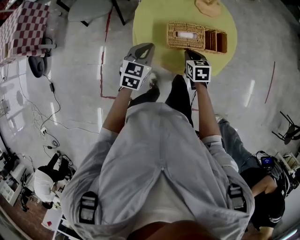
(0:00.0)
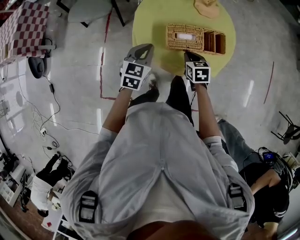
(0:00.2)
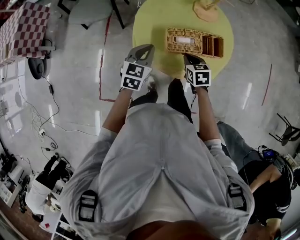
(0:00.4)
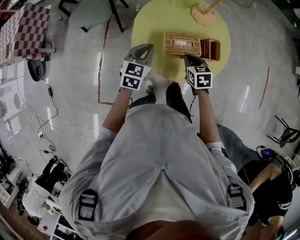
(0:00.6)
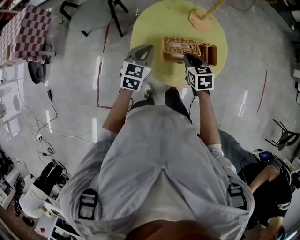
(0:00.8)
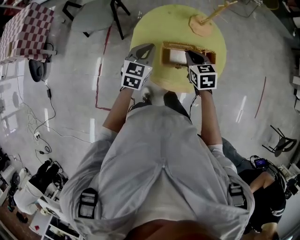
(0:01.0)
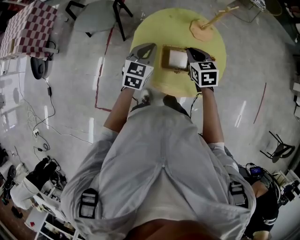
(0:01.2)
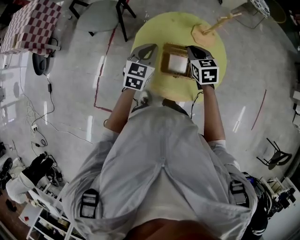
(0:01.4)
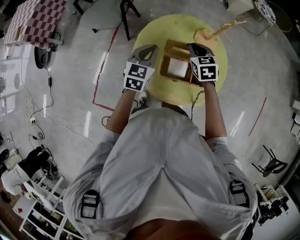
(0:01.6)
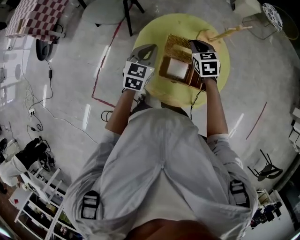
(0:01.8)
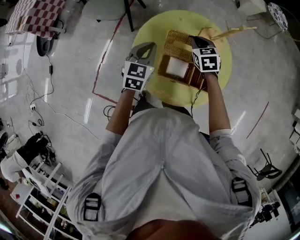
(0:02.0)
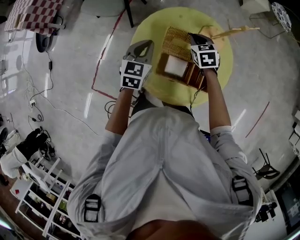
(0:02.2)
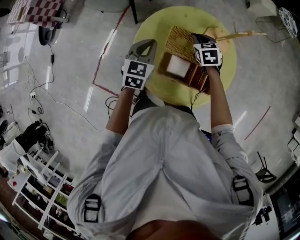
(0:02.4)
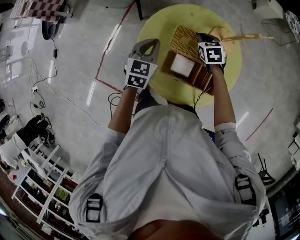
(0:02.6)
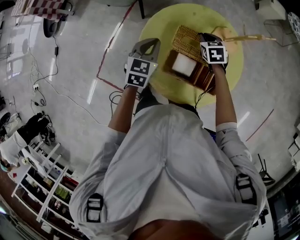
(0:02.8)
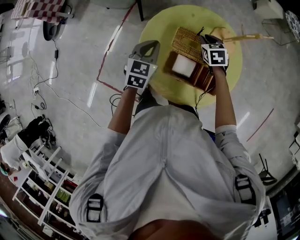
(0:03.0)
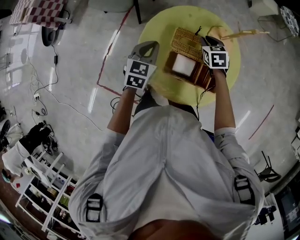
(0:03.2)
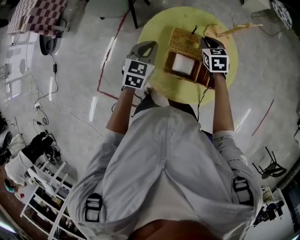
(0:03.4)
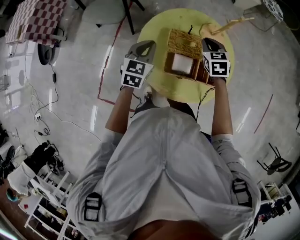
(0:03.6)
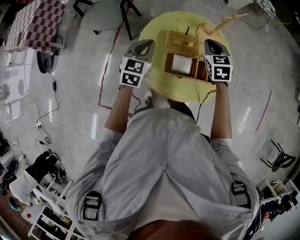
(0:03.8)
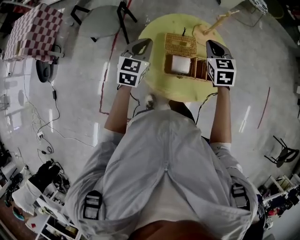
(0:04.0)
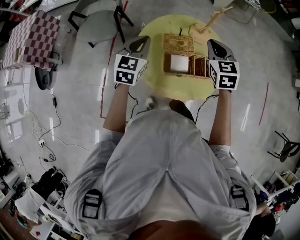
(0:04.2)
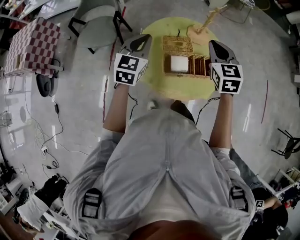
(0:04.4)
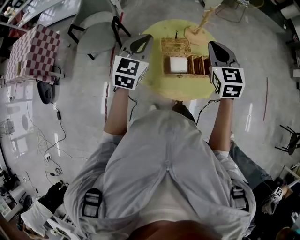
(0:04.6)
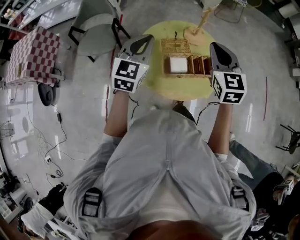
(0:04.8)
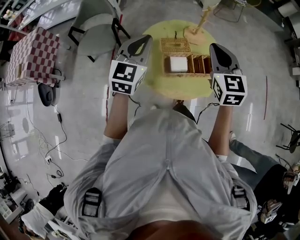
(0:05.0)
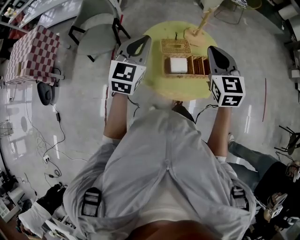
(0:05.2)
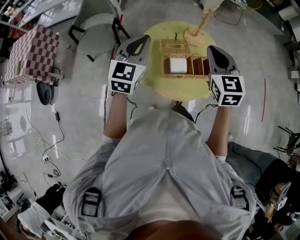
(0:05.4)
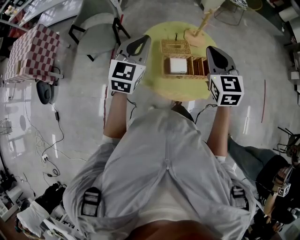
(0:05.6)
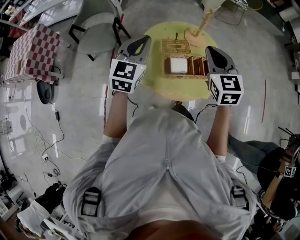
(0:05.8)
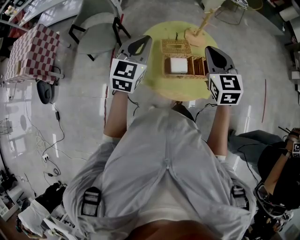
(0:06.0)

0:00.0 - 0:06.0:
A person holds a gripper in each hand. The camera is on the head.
0:00.0 - 0:01.6: The right gripper goes some 25 cm forward and upward, and turns by about 20 degrees, while the left gripper is displaced forward and upward by about 15 cm.
0:01.6 - 0:03.0: The left gripper is displaced downward by about 5 cm, while the right gripper shifts roughly 15 cm downward and forward.
0:03.0 - 0:04.4: The right gripper moves upward and backward, about 30 cm, and rotates roughly 40 degrees. Meanwhile the left gripper is displaced upward by some 15 cm, and changes its angle by roughly 30 degrees.
0:04.4 - 0:06.0: The right gripper travels backward by roughly 5 cm, while the left gripper heads upward, covering about 5 cm.

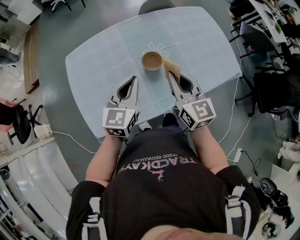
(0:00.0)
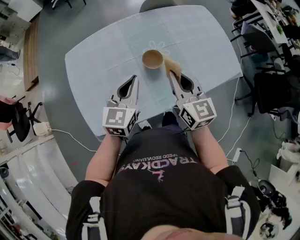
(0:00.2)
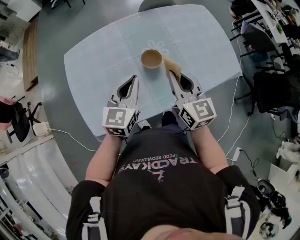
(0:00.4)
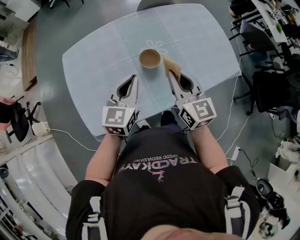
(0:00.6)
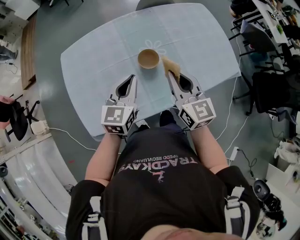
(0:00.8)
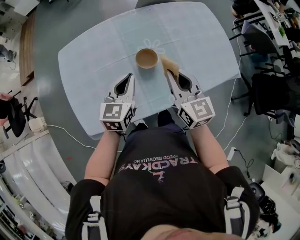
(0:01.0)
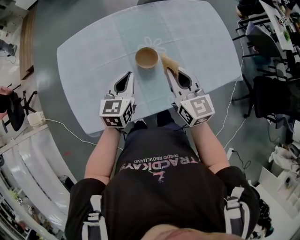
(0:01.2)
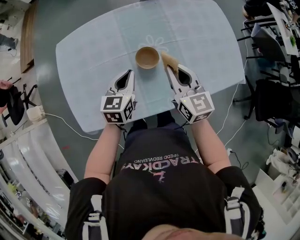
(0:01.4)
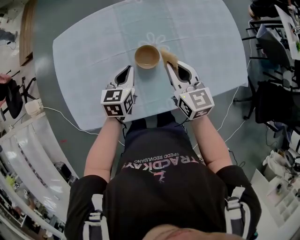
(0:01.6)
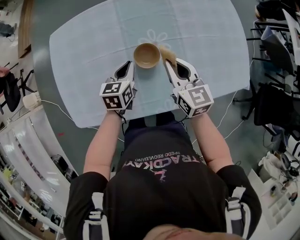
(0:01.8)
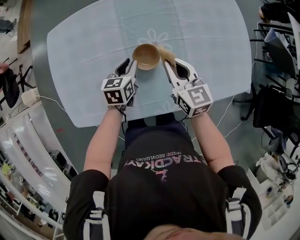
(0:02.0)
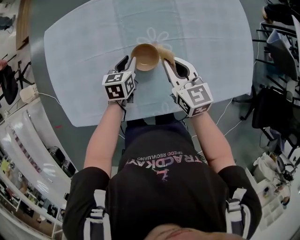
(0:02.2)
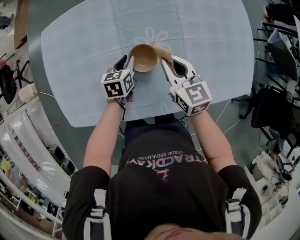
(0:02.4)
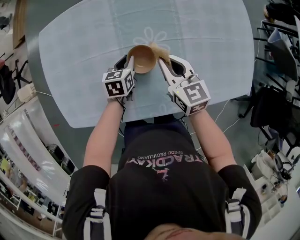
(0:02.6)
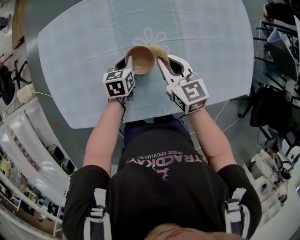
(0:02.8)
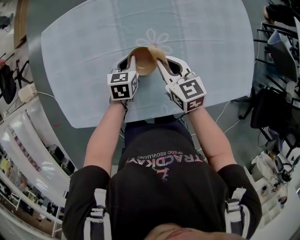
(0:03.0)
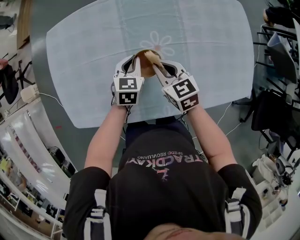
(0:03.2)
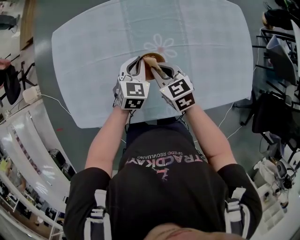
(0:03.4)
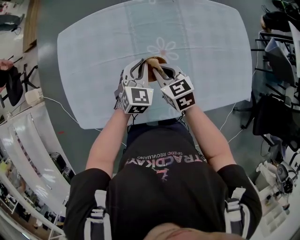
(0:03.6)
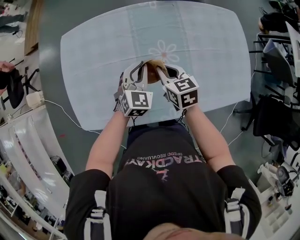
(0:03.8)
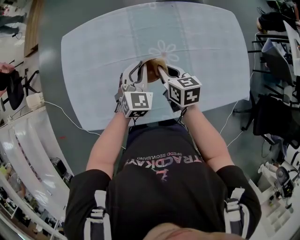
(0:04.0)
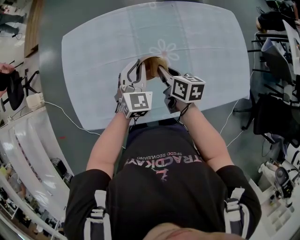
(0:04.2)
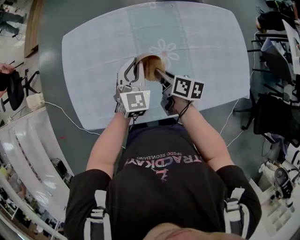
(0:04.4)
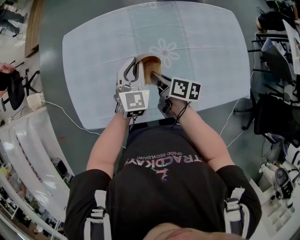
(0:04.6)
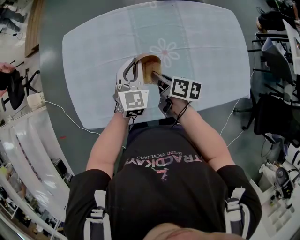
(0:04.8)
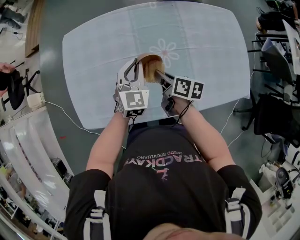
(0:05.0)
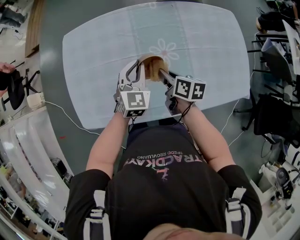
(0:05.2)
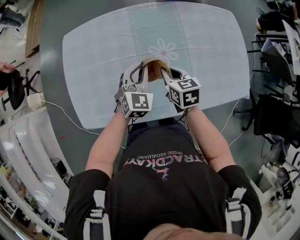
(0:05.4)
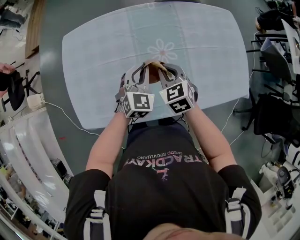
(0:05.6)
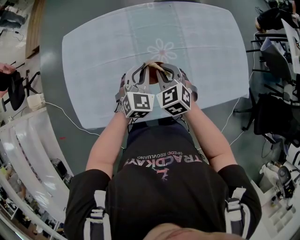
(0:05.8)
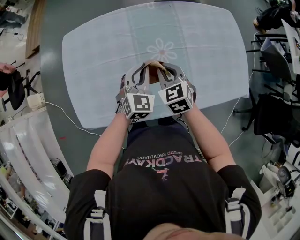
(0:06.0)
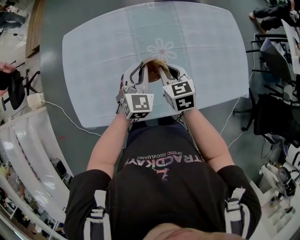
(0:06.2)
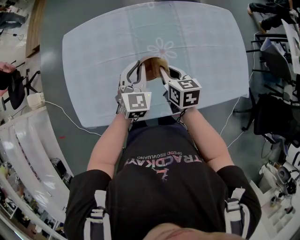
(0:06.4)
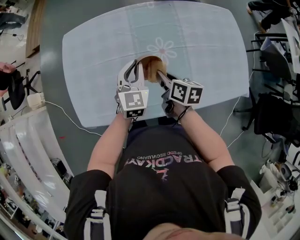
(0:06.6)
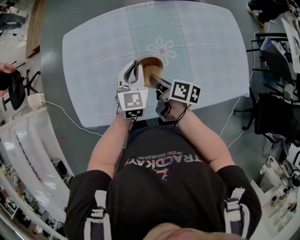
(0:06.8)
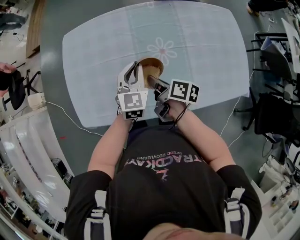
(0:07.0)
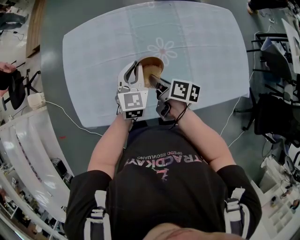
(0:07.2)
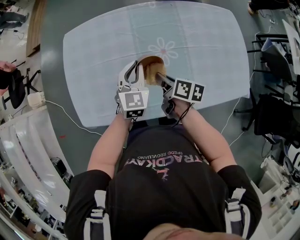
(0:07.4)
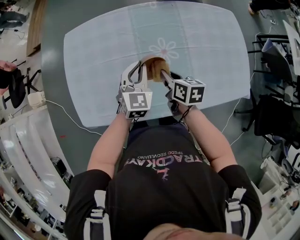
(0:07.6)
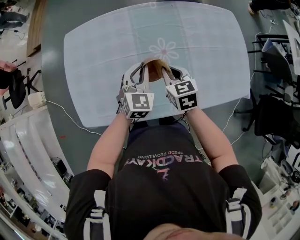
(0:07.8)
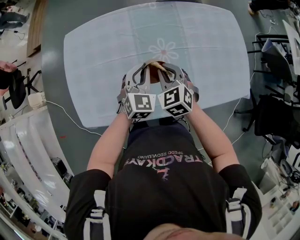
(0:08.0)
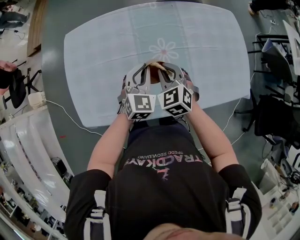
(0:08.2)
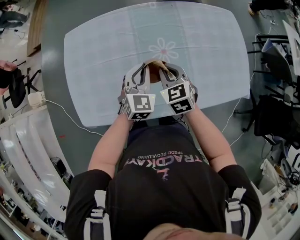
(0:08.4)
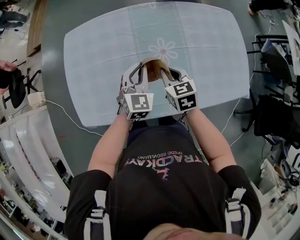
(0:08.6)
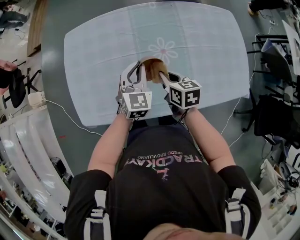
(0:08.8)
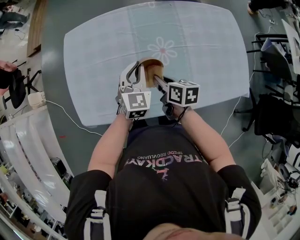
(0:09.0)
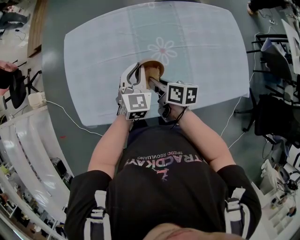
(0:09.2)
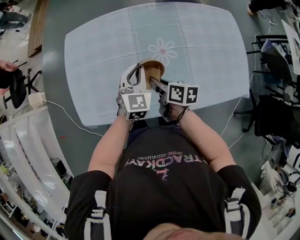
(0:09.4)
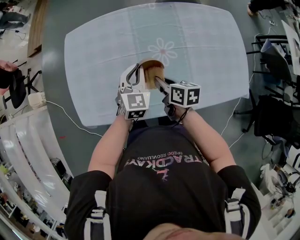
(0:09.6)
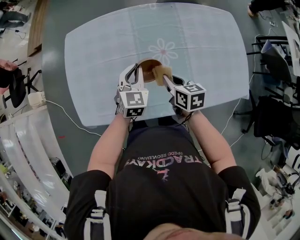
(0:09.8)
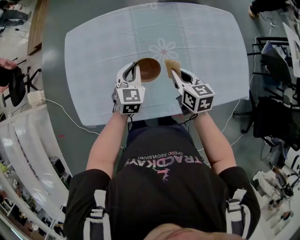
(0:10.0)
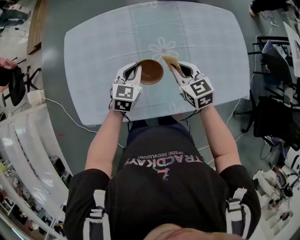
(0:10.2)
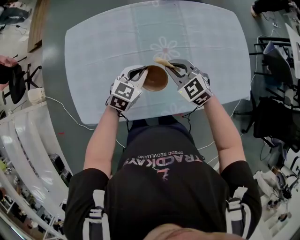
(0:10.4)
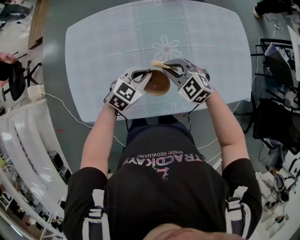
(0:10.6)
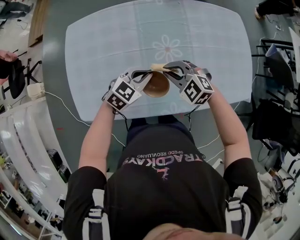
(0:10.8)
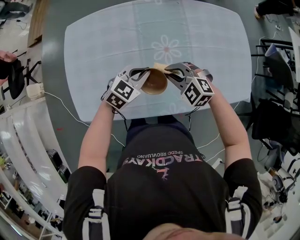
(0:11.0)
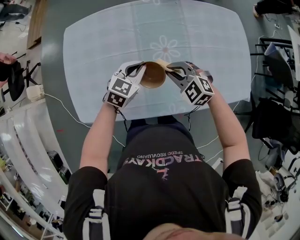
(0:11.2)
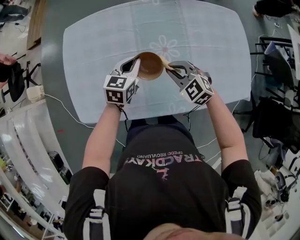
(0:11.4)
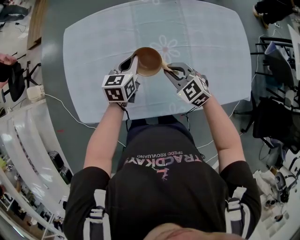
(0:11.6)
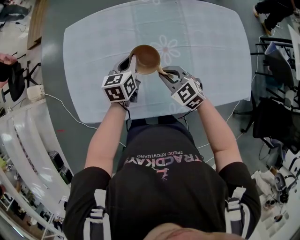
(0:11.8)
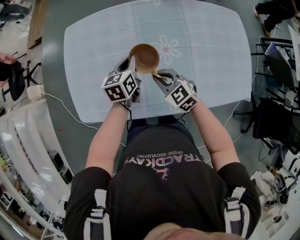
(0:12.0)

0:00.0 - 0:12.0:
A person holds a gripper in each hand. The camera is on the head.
0:00.0 - 0:01.6: The left gripper shifts about 15 cm downward and forward, and changes its angle by some 30 degrees. The right gripper goes about 15 cm forward, downward and to the right.
0:01.6 - 0:03.0: Both grippers travel together downward and forward, about 15 cm. The left gripper opens, then closes once more.
0:03.0 - 0:04.4: The right gripper heads to the left, covering approximately 5 cm, and twists some 40 degrees clockwise, seen from behind; the left gripper heads upward, covering about 15 cm, and changes its angle by some 40 degrees.
0:04.4 - 0:06.0: The right gripper rolls counterclockwise, seen from behind, by about 60 degrees.
0:06.0 - 0:07.6: The right gripper twists about 50 degrees clockwise, seen from behind.
0:09.0 - 0:10.4: The left gripper changes place by about 5 cm, and rotates roughly 30 degrees, while the right gripper shifts by approximately 5 cm, and rotates around the line of its fingers by some 70 degrees, counterclockwise from behind.
0:10.4 - 0:12.0: The right gripper heads to the left, covering about 5 cm; the left gripper is displaced forward and to the left by approximately 10 cm, and turns by roughly 40 degrees.

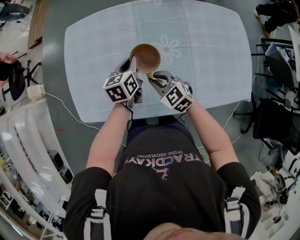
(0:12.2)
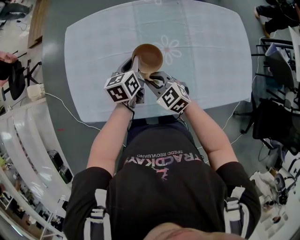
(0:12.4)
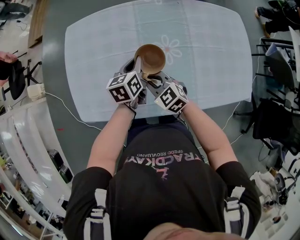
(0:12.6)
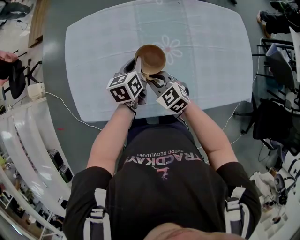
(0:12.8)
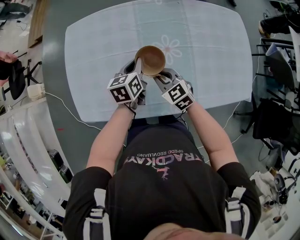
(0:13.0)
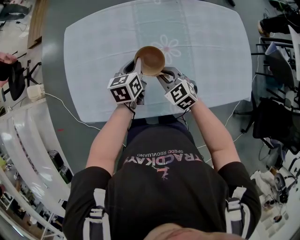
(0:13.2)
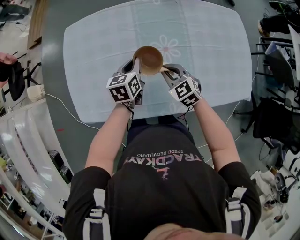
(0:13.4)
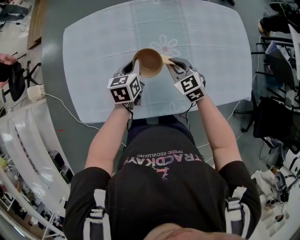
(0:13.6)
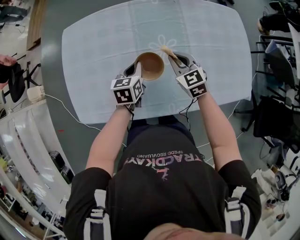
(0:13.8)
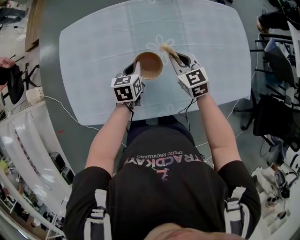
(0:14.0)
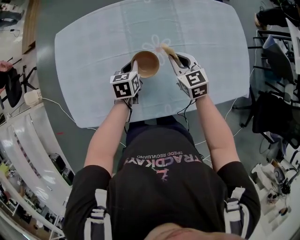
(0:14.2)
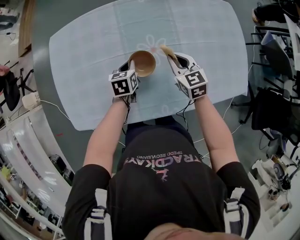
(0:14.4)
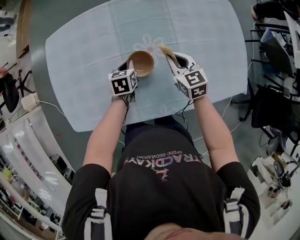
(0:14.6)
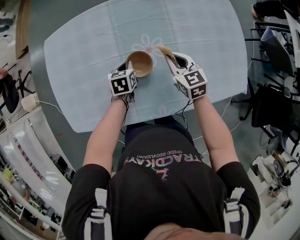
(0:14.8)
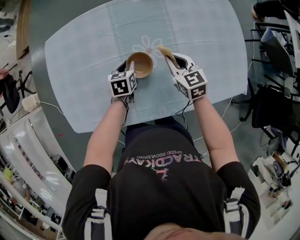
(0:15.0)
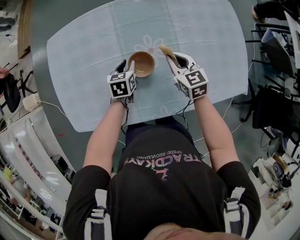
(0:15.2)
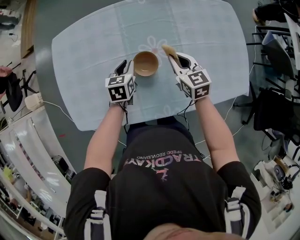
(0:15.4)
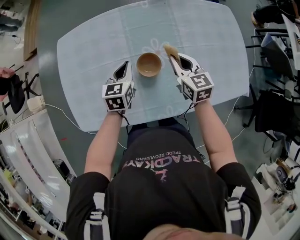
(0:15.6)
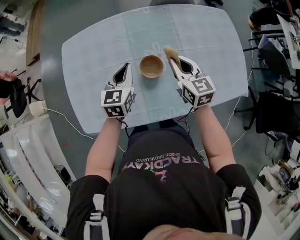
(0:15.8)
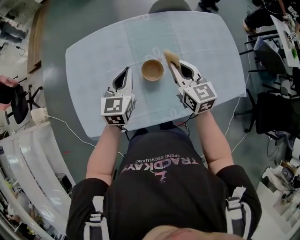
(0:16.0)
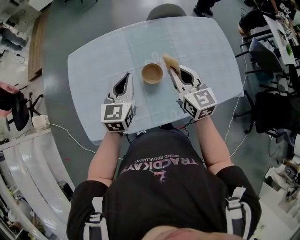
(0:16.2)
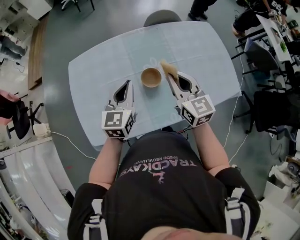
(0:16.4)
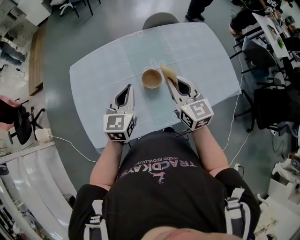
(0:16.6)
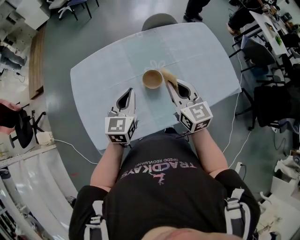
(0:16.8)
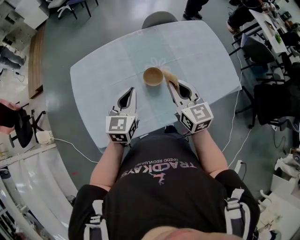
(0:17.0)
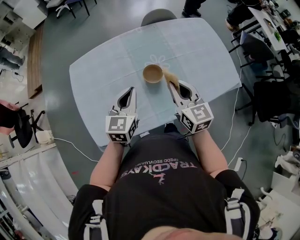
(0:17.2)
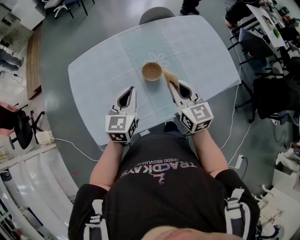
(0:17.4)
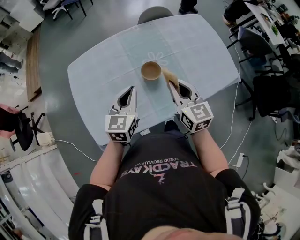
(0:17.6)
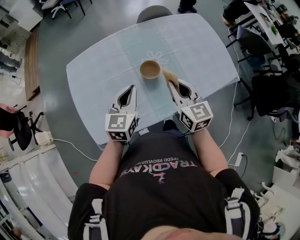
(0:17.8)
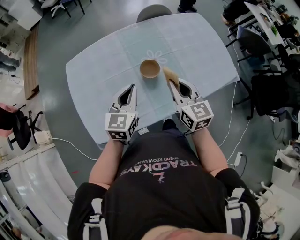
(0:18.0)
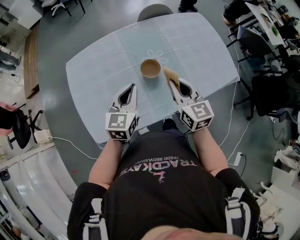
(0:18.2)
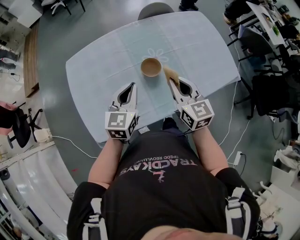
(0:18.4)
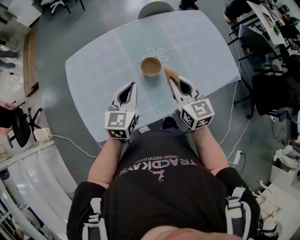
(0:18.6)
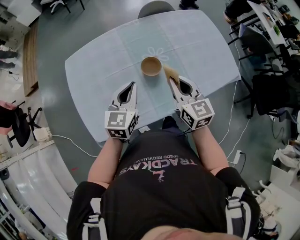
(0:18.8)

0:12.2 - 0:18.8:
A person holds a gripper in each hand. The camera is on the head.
0:12.2 - 0:13.8: The right gripper heads to the right and forward, covering some 15 cm, and swivels approximately 20 degrees.
0:15.4 - 0:17.2: The left gripper goes some 25 cm upward and backward, turns by about 30 degrees, and closes its fingers. The right gripper travels upward, backward and to the left by approximately 25 cm, and swivels some 20 degrees.
0:17.2 - 0:18.8: The grippers move only a little.
